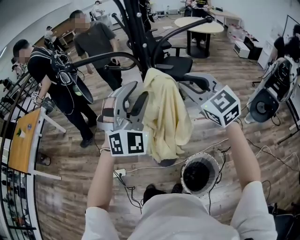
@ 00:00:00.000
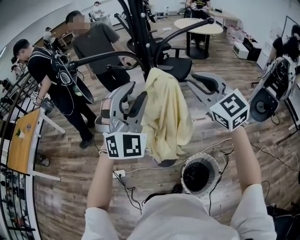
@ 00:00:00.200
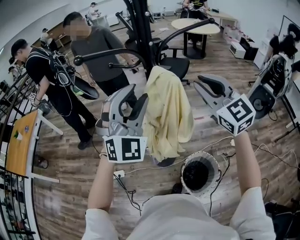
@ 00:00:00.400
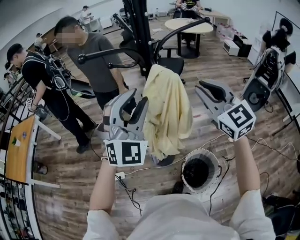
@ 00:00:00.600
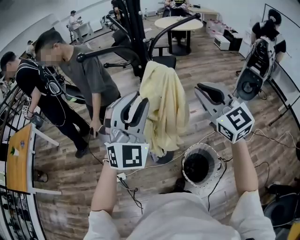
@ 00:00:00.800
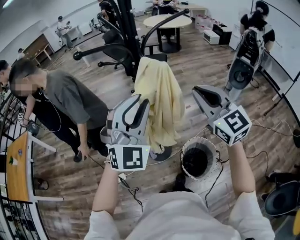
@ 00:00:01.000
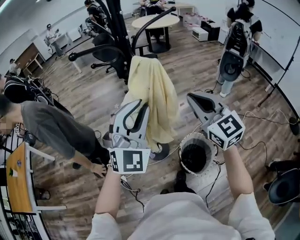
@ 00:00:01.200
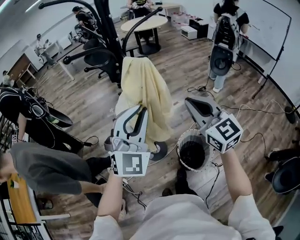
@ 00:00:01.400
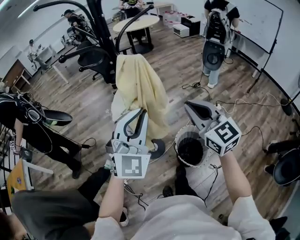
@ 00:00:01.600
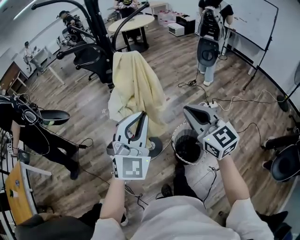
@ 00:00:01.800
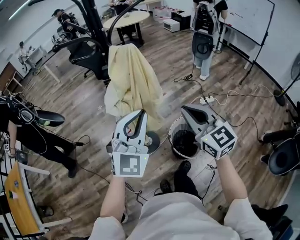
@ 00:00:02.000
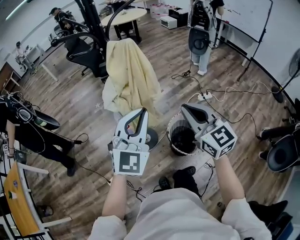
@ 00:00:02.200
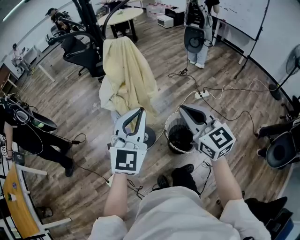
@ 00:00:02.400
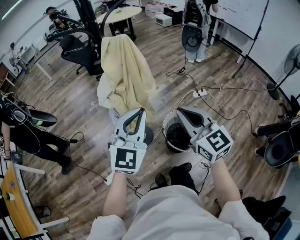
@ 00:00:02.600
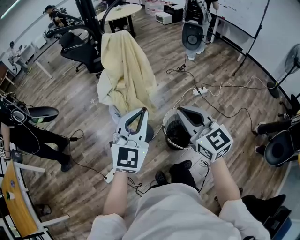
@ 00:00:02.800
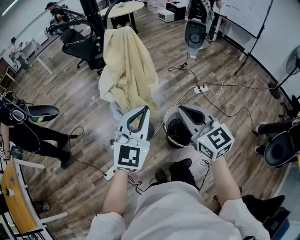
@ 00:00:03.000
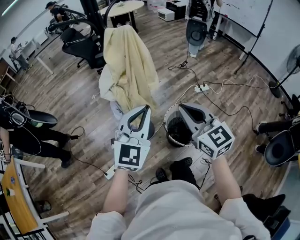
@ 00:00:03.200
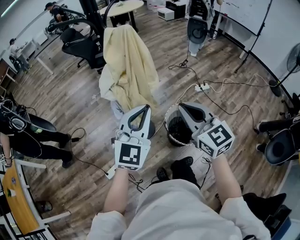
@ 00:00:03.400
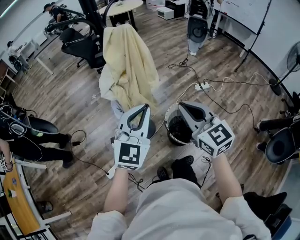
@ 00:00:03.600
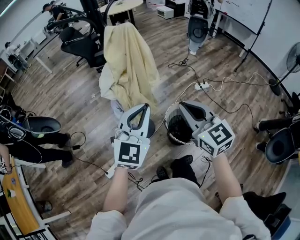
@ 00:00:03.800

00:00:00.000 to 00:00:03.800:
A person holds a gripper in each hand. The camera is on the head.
00:00:00.000 to 00:00:01.200: Both grippers move backward, approximately 15 cm. The left gripper rotates about 30 degrees, and closes; the right gripper swivels some 30 degrees.
00:00:01.200 to 00:00:02.600: The grippers both shift backward and downward by some 15 cm. The left gripper swivels roughly 30 degrees.
00:00:02.600 to 00:00:03.800: There are only small adjustments of the grippers.

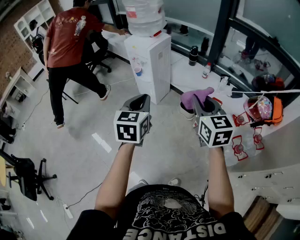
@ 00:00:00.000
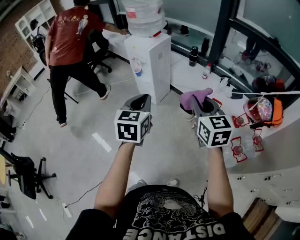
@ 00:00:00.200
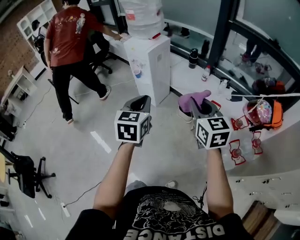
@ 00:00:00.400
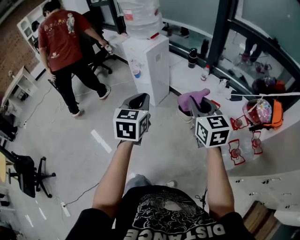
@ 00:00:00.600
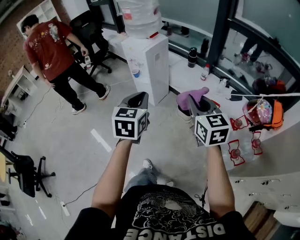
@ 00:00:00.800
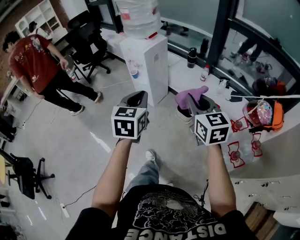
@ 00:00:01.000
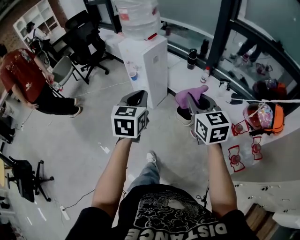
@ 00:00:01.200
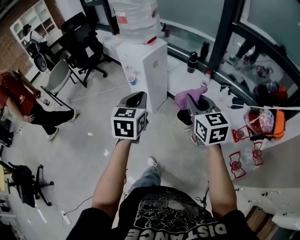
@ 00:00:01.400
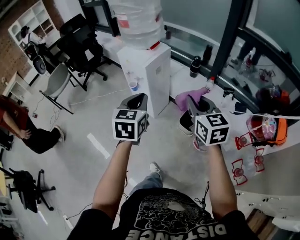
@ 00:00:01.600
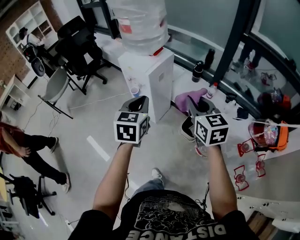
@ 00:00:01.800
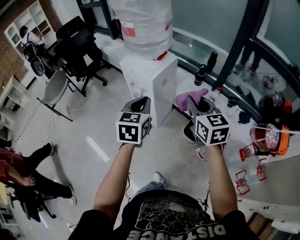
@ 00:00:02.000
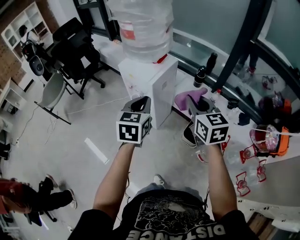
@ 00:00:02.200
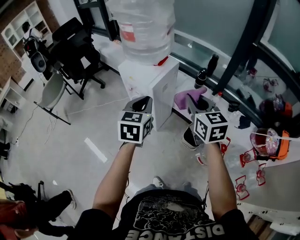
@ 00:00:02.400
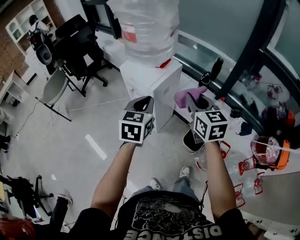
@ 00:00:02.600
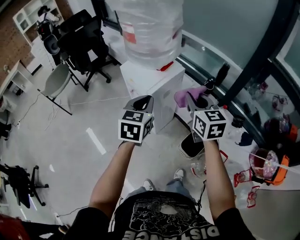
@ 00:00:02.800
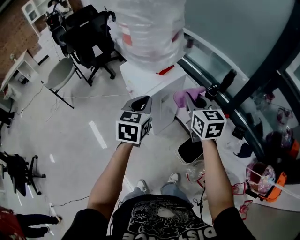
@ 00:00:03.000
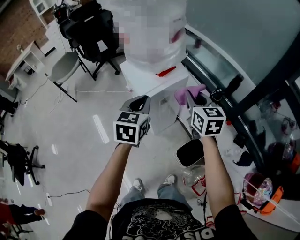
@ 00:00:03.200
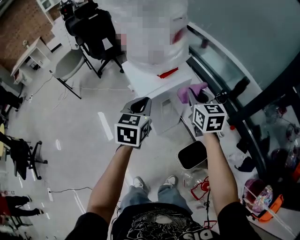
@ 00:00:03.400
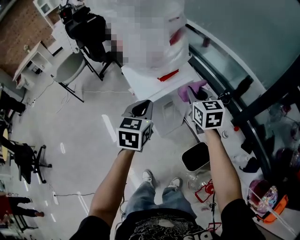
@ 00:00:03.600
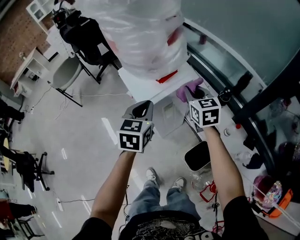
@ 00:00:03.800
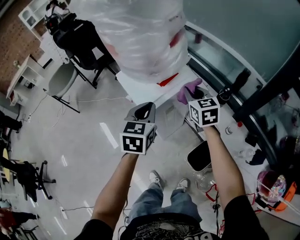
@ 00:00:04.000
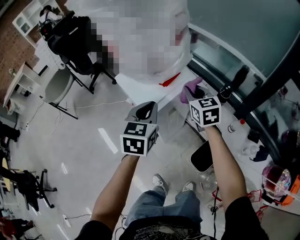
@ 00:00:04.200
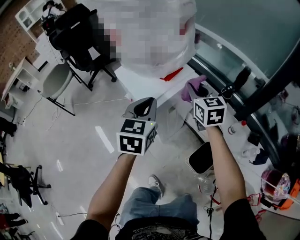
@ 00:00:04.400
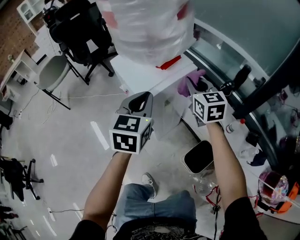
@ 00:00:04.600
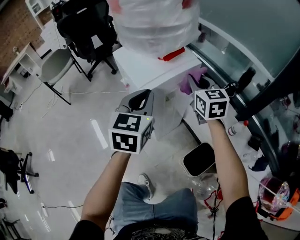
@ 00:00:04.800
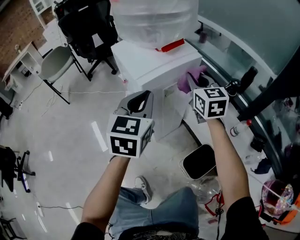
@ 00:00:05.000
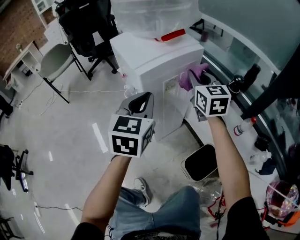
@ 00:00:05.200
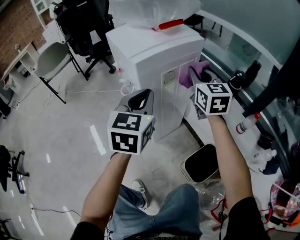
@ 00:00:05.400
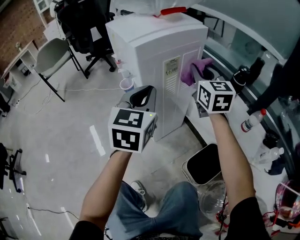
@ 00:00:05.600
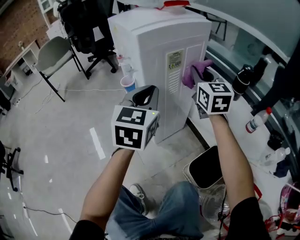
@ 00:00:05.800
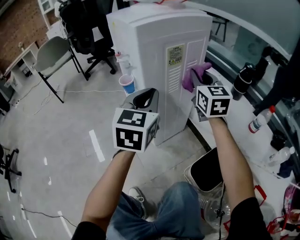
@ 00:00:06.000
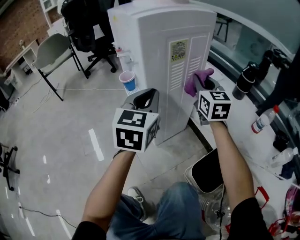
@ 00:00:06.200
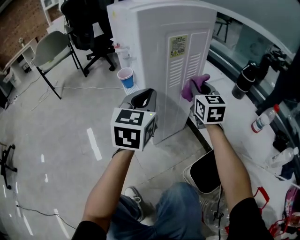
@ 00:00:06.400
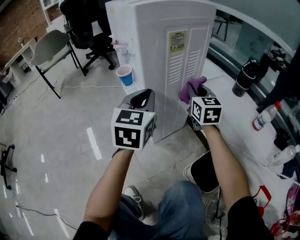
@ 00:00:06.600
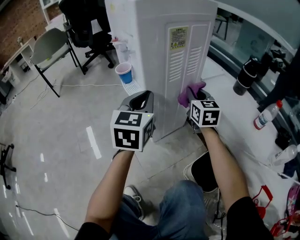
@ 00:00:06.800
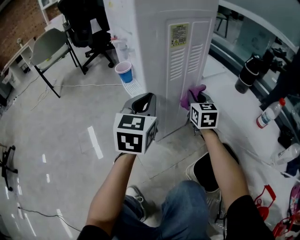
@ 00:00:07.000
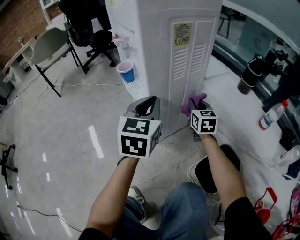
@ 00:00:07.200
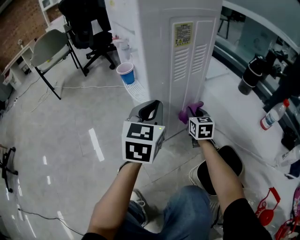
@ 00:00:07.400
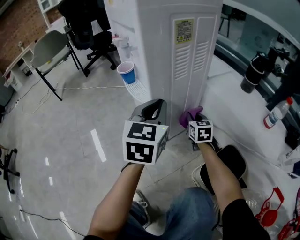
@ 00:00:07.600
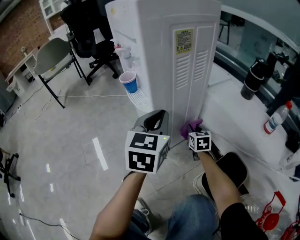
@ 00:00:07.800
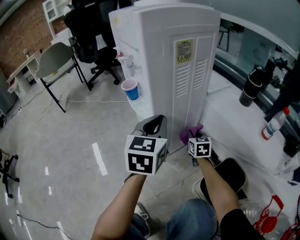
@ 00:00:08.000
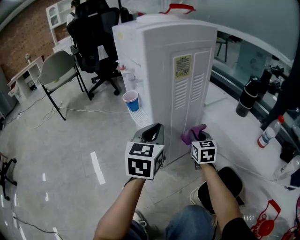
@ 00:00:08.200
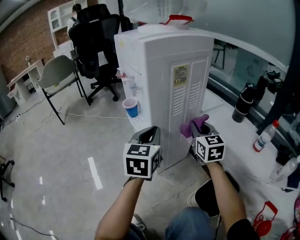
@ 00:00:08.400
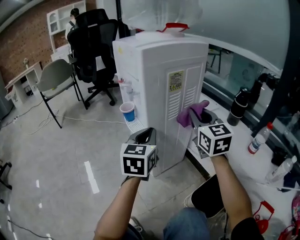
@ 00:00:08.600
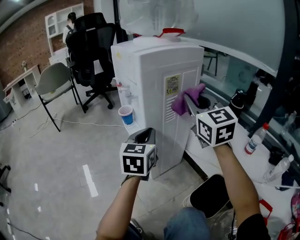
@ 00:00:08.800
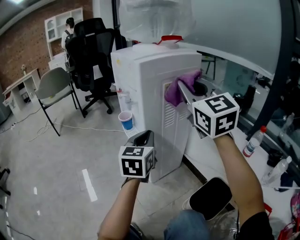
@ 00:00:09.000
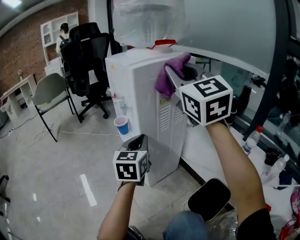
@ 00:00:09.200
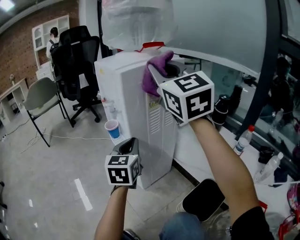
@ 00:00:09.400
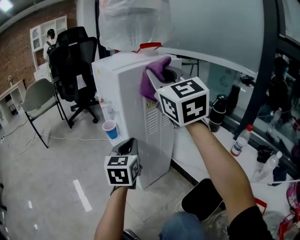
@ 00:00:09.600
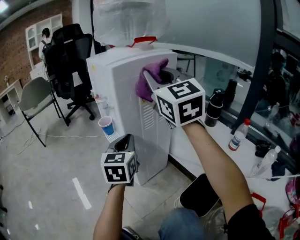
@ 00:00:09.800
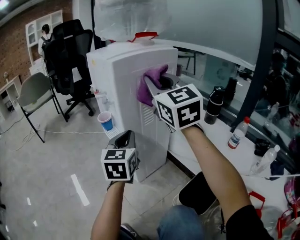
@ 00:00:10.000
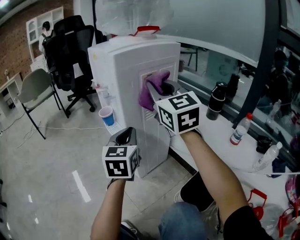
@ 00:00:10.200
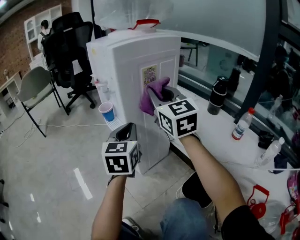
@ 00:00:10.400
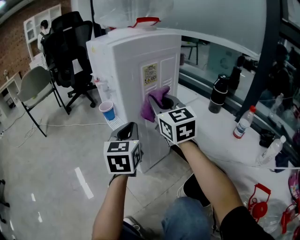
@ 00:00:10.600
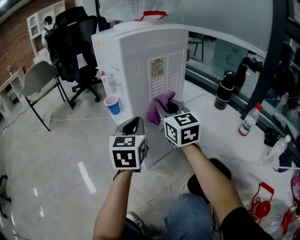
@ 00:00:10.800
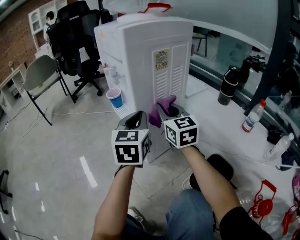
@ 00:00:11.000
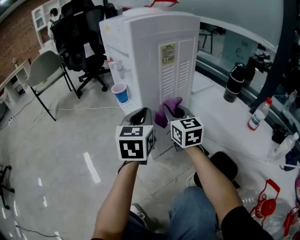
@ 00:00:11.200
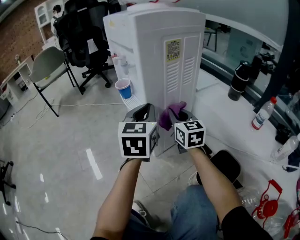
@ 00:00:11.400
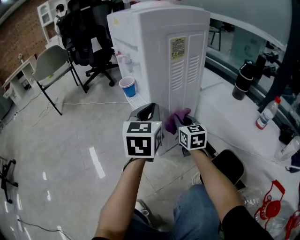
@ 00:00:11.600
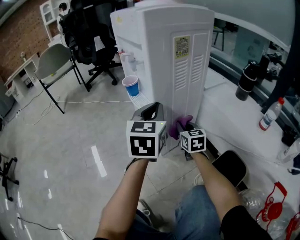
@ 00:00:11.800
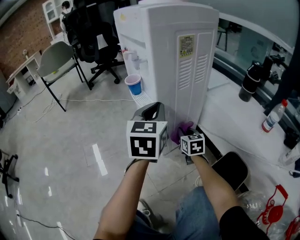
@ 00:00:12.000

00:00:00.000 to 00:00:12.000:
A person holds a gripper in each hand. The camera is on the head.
00:00:00.000 to 00:00:01.600: The two grippers go about 20 cm forward.
00:00:01.600 to 00:00:03.000: The grippers both shift forward by approximately 25 cm.
00:00:03.000 to 00:00:04.400: The right gripper shifts roughly 20 cm forward and downward. The left gripper travels forward and downward by some 10 cm.
00:00:04.400 to 00:00:06.000: Both grippers travel together downward, some 25 cm.
00:00:06.000 to 00:00:07.600: The right gripper is displaced downward by about 35 cm, and rotates roughly 20 degrees, while the left gripper goes roughly 10 cm downward.
00:00:07.600 to 00:00:09.000: The left gripper shifts approximately 5 cm upward. Meanwhile the right gripper shifts approximately 50 cm upward, and tips its fingers upward by some 30 degrees.
00:00:09.000 to 00:00:10.400: The right gripper moves downward, approximately 10 cm.
00:00:10.400 to 00:00:12.000: The right gripper moves downward, roughly 40 cm, and turns by about 30 degrees.

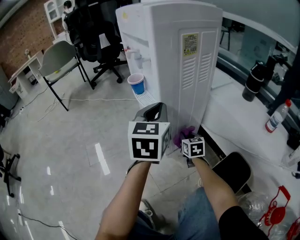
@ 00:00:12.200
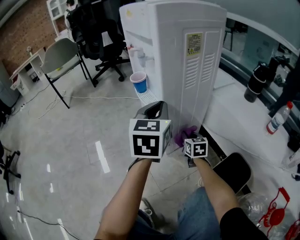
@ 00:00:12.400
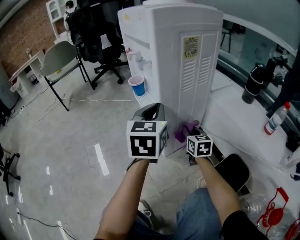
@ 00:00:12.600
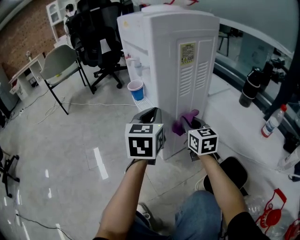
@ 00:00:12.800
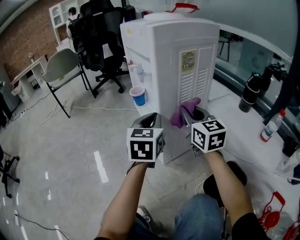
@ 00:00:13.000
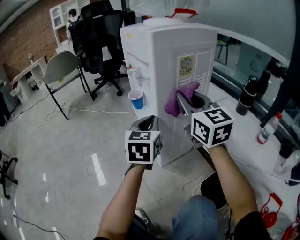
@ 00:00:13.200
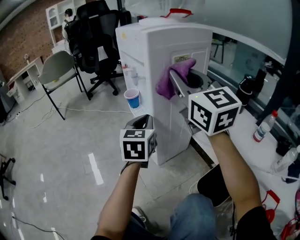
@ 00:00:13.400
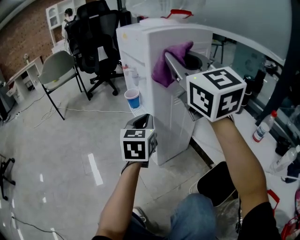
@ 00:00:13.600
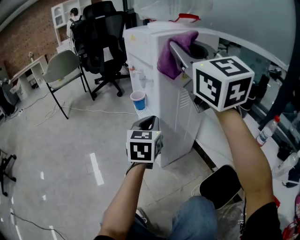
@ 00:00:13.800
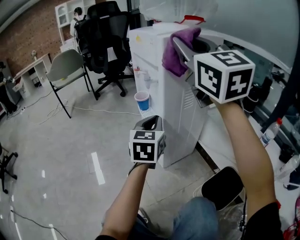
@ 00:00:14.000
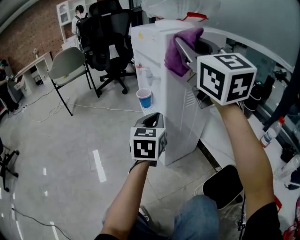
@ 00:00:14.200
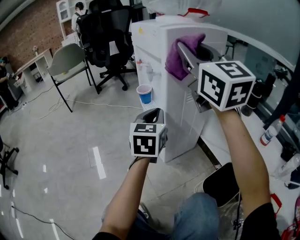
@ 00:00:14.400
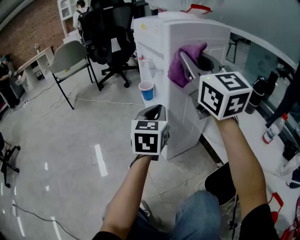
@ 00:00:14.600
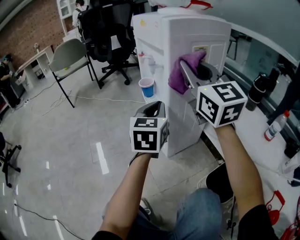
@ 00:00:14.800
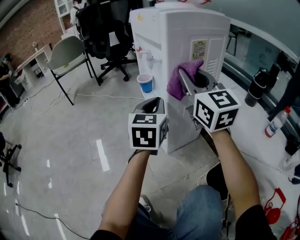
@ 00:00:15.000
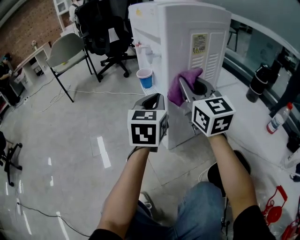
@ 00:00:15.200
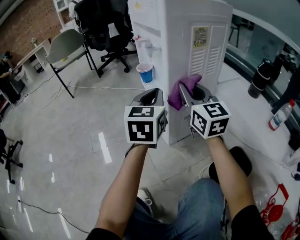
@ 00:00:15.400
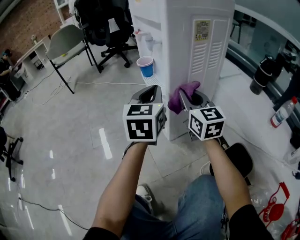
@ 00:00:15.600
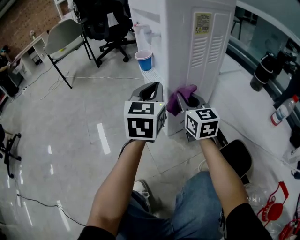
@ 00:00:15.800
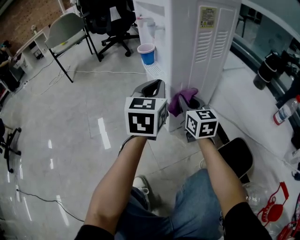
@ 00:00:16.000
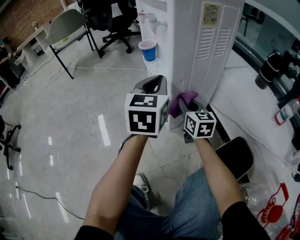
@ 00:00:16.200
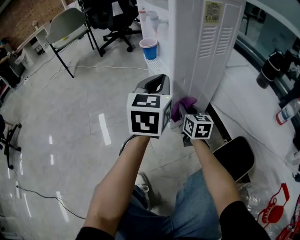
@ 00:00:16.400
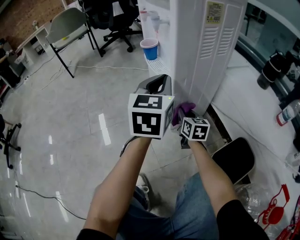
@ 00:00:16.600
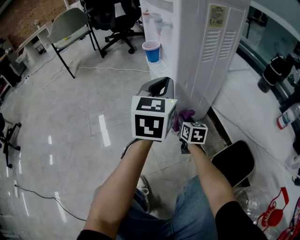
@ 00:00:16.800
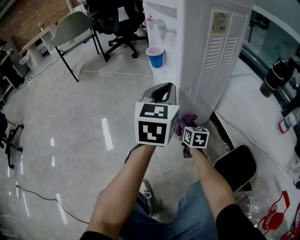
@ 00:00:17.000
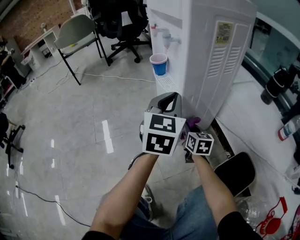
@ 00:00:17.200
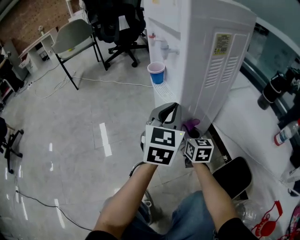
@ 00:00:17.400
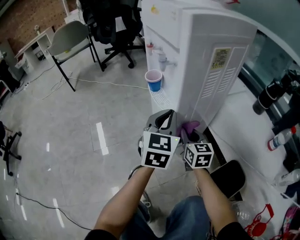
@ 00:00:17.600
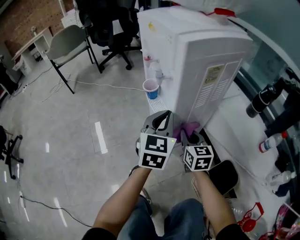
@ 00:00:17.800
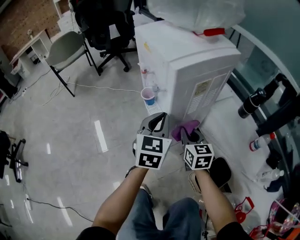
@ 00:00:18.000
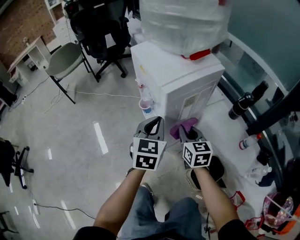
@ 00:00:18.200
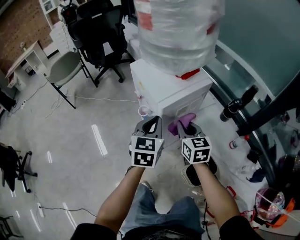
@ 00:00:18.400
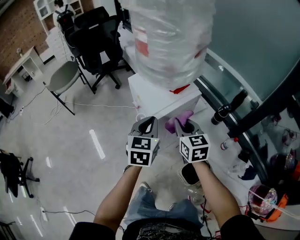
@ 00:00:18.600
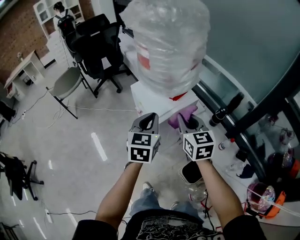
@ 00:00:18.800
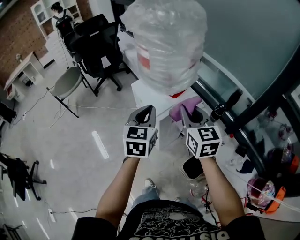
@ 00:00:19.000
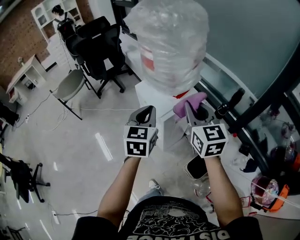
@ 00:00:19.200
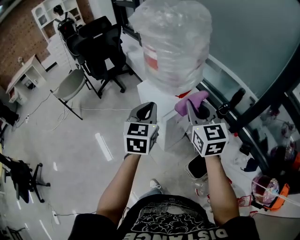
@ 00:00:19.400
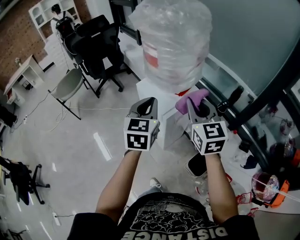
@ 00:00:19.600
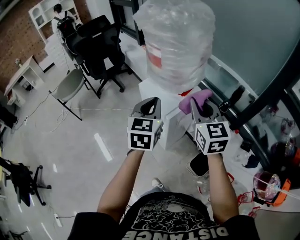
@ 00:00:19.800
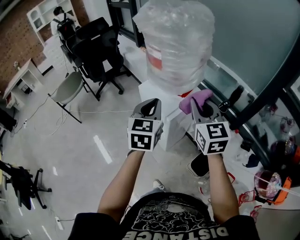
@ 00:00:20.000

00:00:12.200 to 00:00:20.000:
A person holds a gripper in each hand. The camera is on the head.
00:00:12.200 to 00:00:13.800: The right gripper shifts roughly 60 cm upward, and tilts its fingers some 40 degrees upward.
00:00:13.800 to 00:00:15.400: The right gripper travels downward by about 25 cm, and changes its angle by roughly 20 degrees.
00:00:15.400 to 00:00:16.800: The right gripper shifts about 30 cm downward, and swivels some 40 degrees.
00:00:16.800 to 00:00:18.400: The right gripper goes roughly 50 cm upward. The left gripper travels upward by about 30 cm.
00:00:18.400 to 00:00:20.000: Both grippers travel together upward, about 25 cm. The right gripper changes its angle by about 20 degrees.
